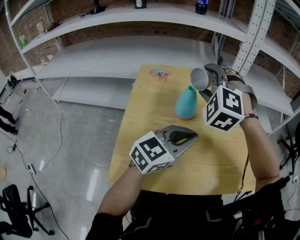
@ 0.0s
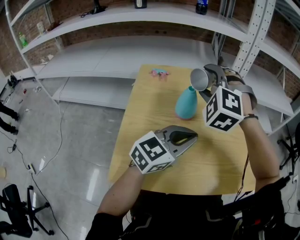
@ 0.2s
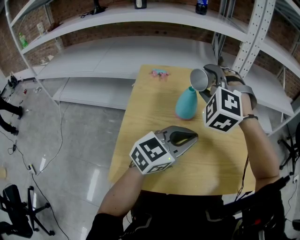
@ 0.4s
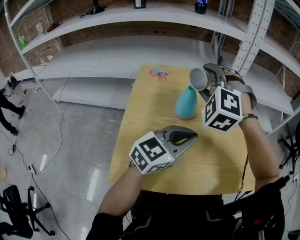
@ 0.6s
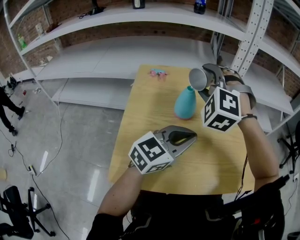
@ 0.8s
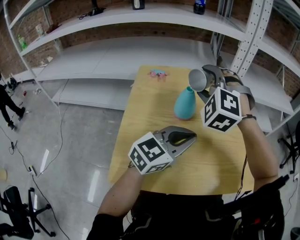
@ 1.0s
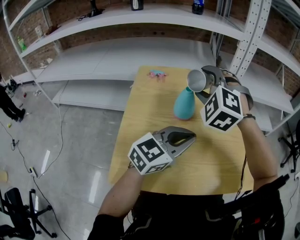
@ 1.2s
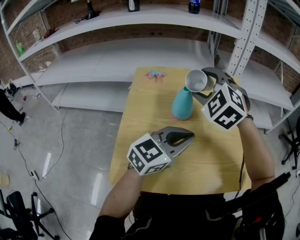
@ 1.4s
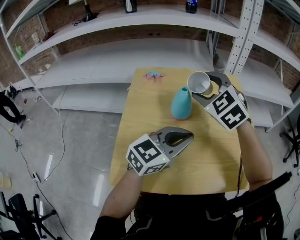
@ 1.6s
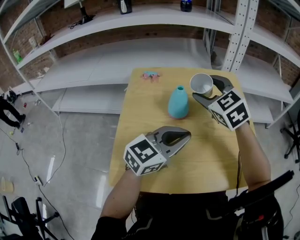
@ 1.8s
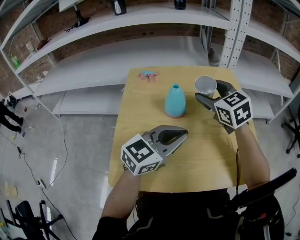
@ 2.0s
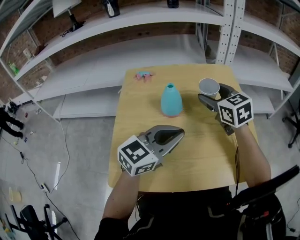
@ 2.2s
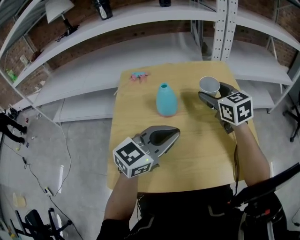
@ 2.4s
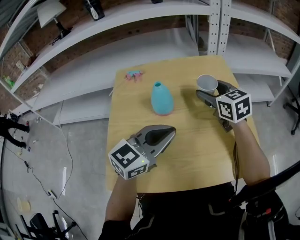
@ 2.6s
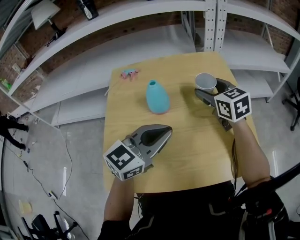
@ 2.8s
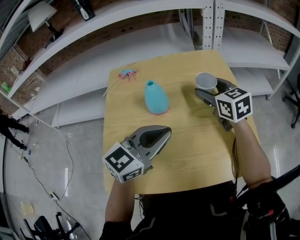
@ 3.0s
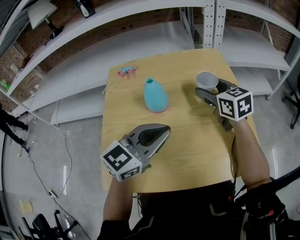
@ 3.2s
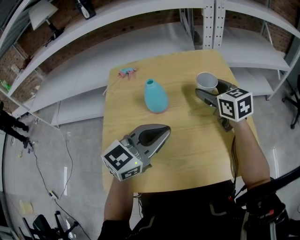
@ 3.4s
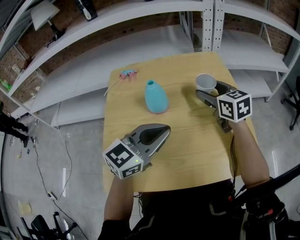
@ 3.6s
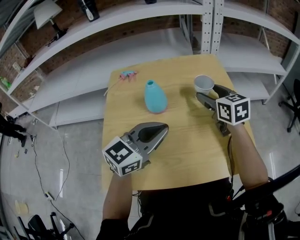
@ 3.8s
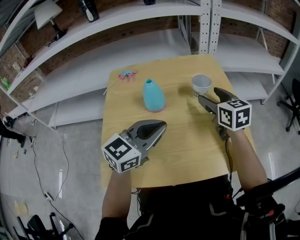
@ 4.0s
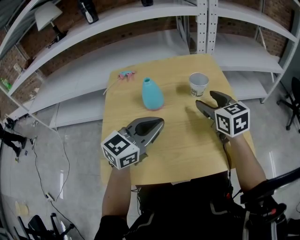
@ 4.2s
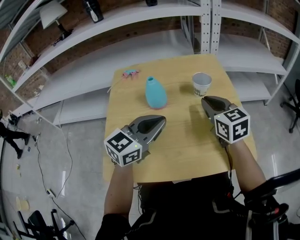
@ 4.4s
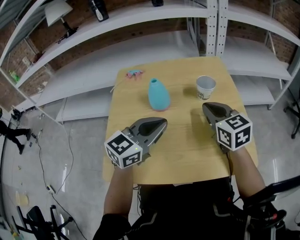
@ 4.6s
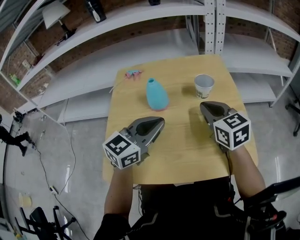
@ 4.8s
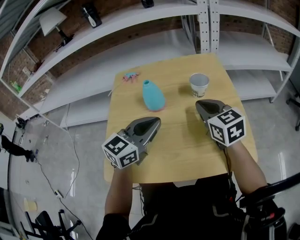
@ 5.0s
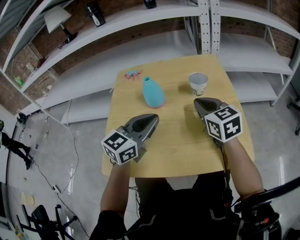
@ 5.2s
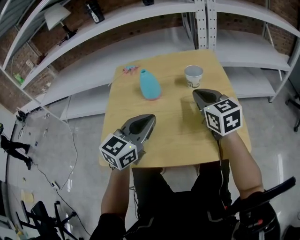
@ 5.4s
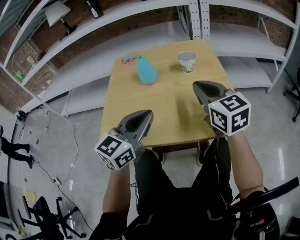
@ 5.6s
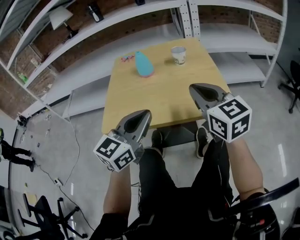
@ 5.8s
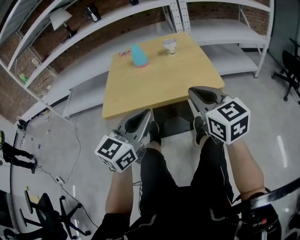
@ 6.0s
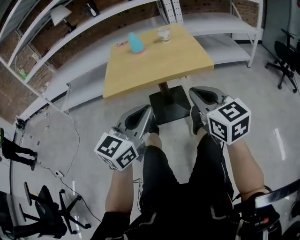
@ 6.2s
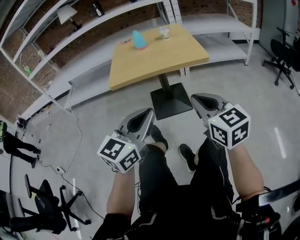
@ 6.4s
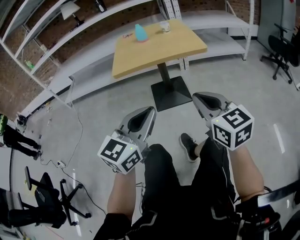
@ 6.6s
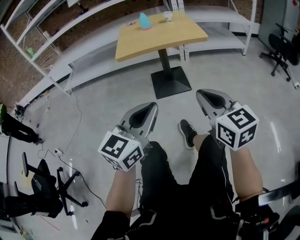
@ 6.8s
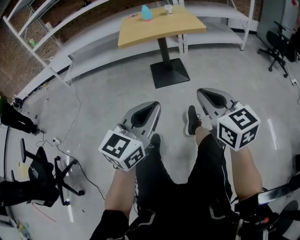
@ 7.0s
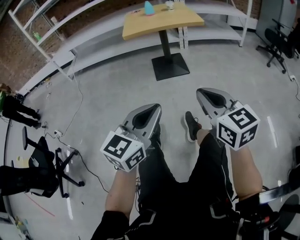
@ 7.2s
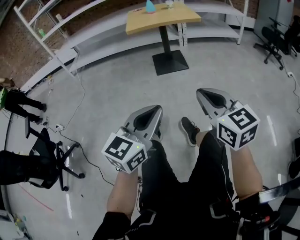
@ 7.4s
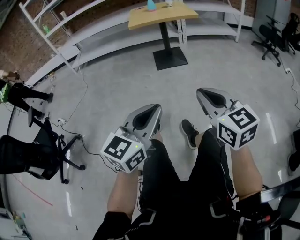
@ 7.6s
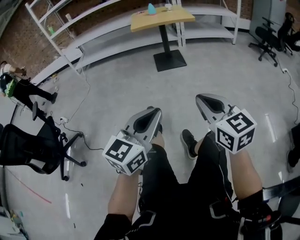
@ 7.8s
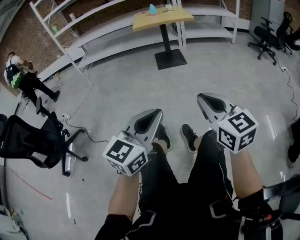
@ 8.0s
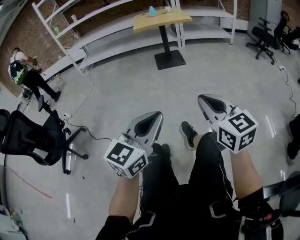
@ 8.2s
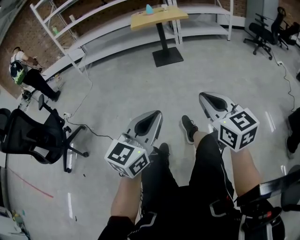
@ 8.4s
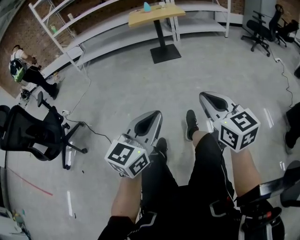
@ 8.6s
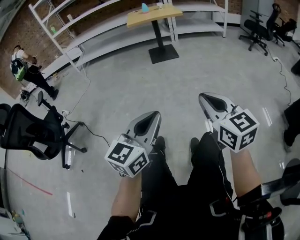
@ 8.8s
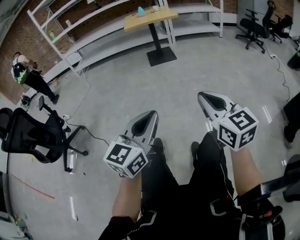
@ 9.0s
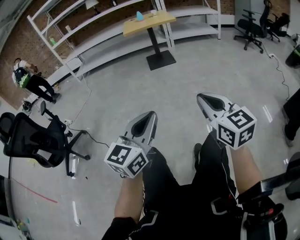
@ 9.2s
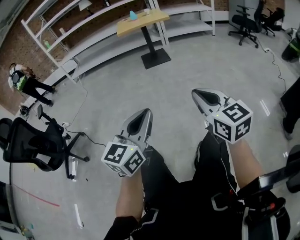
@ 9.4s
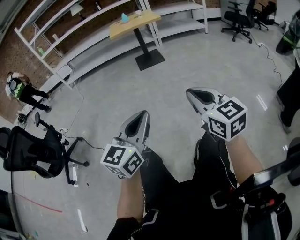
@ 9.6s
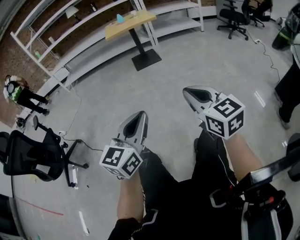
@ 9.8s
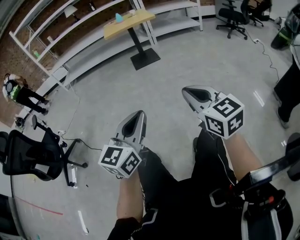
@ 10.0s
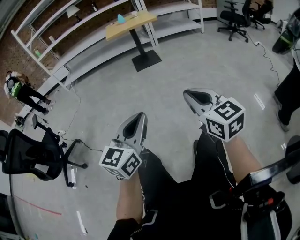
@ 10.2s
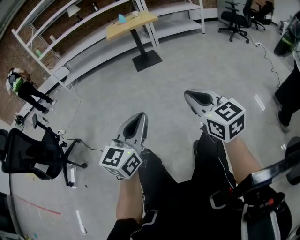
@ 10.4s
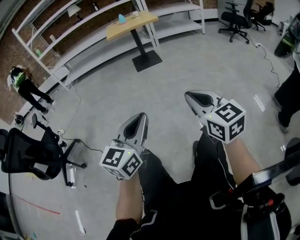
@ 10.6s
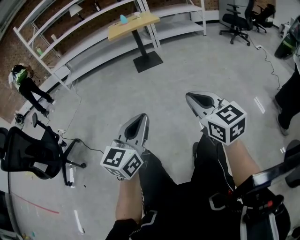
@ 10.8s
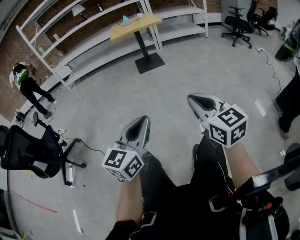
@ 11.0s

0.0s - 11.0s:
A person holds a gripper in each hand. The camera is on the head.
0.0s - 1.6s: The right gripper rotates about 30 degrees.
1.6s - 3.2s: The right gripper shifts some 15 cm to the right and downward, and rolls clockwise, seen from behind, by some 50 degrees.
3.2s - 4.8s: The right gripper is displaced backward by approximately 10 cm, and closes.
4.8s - 6.2s: The two grippers travel together, backward, about 40 cm.
6.2s - 7.8s: The pair of grippers is taken backward, some 80 cm.
7.8s - 9.4s: Both grippers move backward, some 20 cm.
9.4s - 11.0s: The grippers make only small movements.

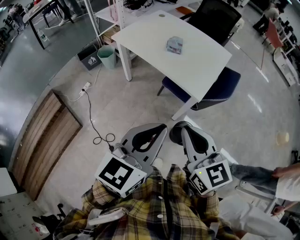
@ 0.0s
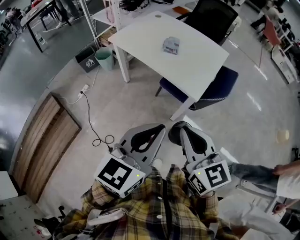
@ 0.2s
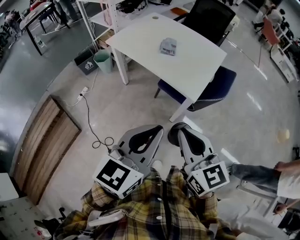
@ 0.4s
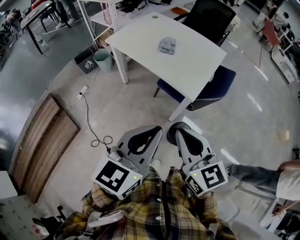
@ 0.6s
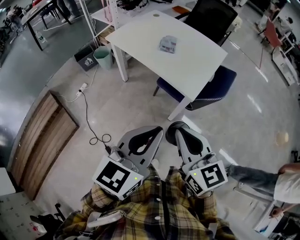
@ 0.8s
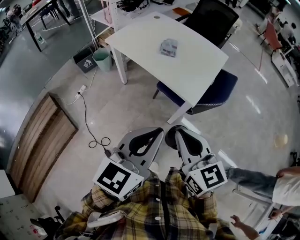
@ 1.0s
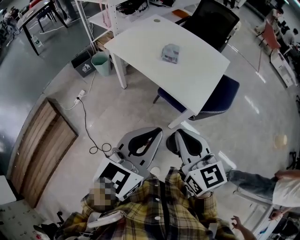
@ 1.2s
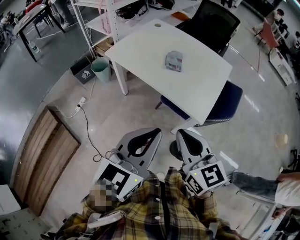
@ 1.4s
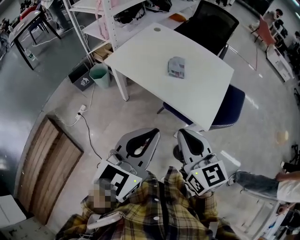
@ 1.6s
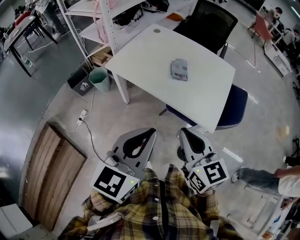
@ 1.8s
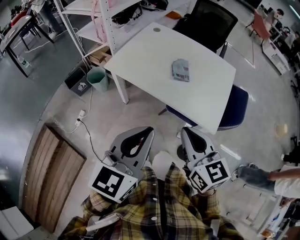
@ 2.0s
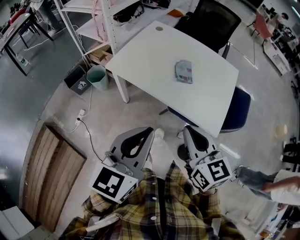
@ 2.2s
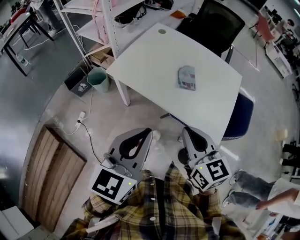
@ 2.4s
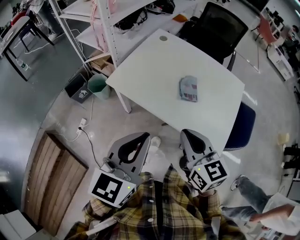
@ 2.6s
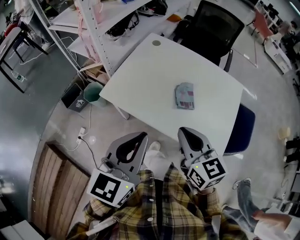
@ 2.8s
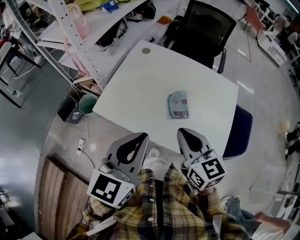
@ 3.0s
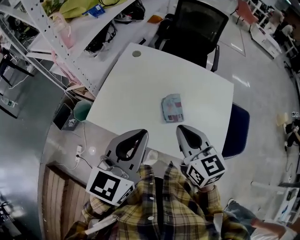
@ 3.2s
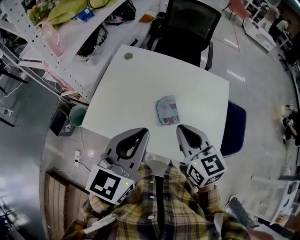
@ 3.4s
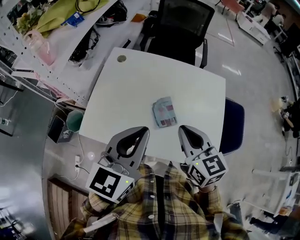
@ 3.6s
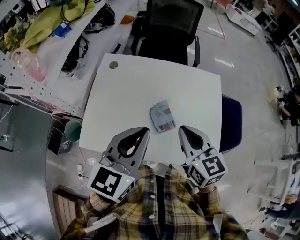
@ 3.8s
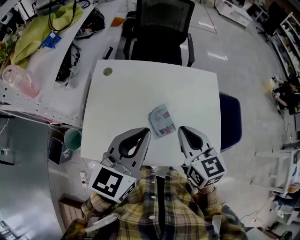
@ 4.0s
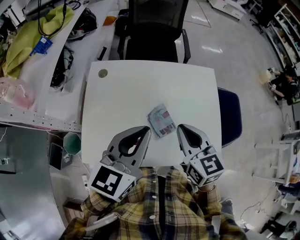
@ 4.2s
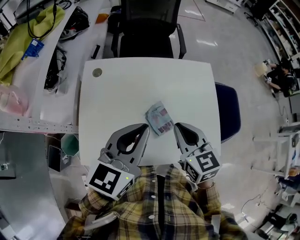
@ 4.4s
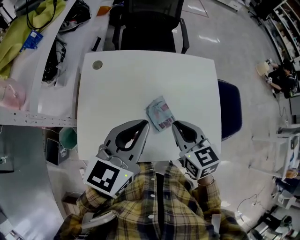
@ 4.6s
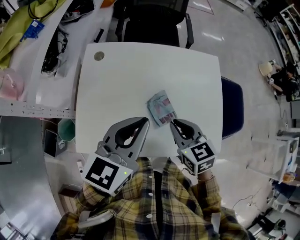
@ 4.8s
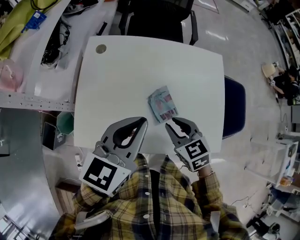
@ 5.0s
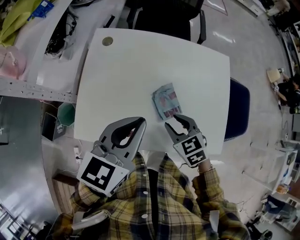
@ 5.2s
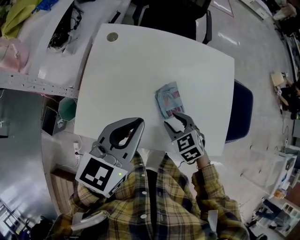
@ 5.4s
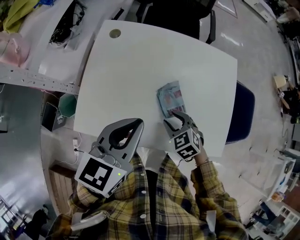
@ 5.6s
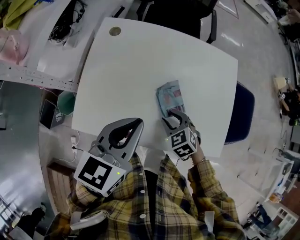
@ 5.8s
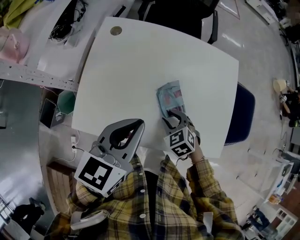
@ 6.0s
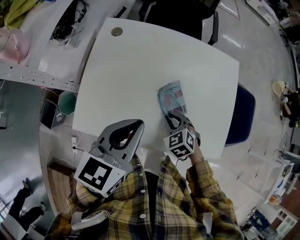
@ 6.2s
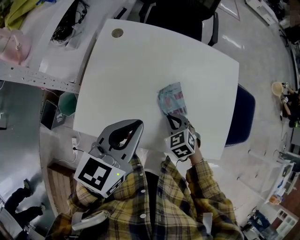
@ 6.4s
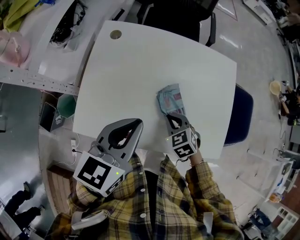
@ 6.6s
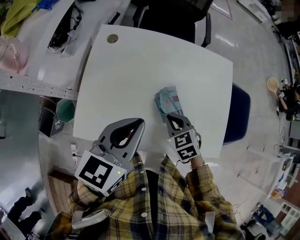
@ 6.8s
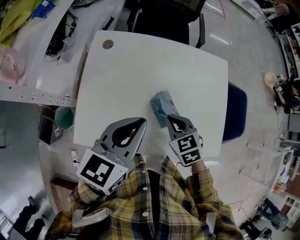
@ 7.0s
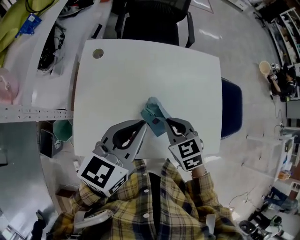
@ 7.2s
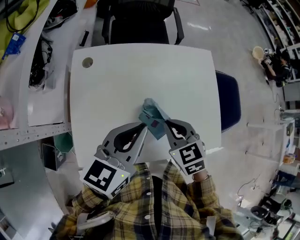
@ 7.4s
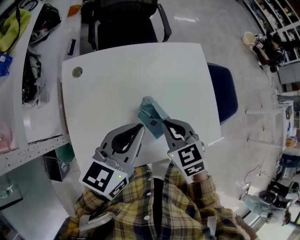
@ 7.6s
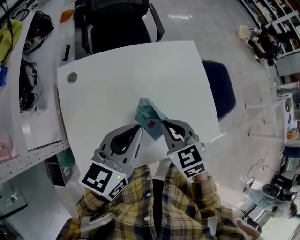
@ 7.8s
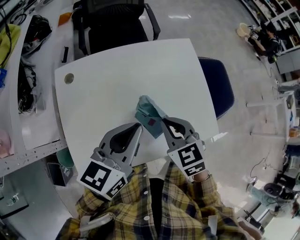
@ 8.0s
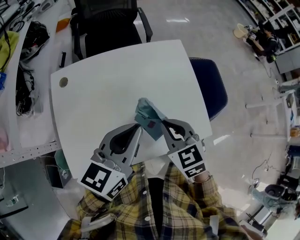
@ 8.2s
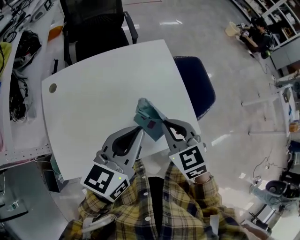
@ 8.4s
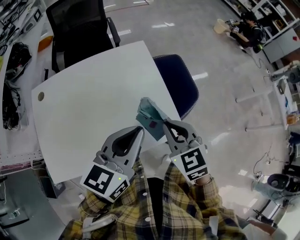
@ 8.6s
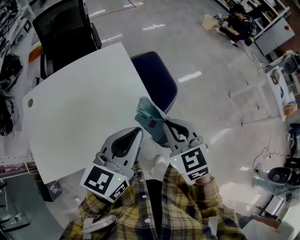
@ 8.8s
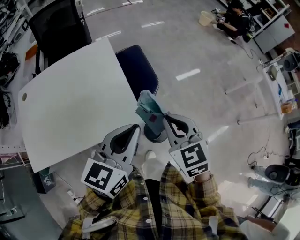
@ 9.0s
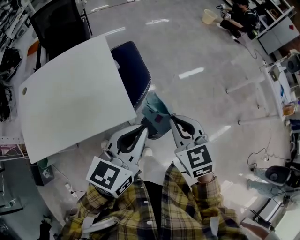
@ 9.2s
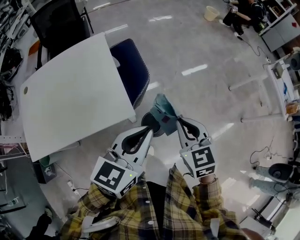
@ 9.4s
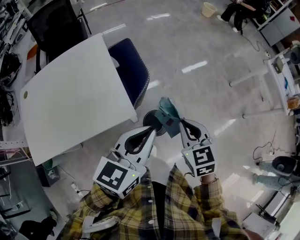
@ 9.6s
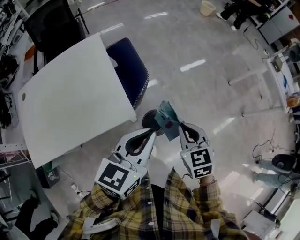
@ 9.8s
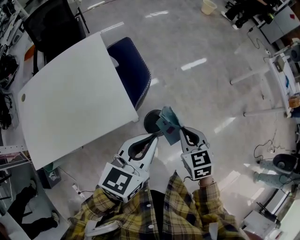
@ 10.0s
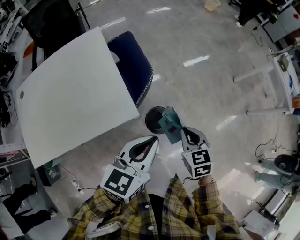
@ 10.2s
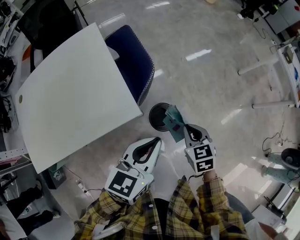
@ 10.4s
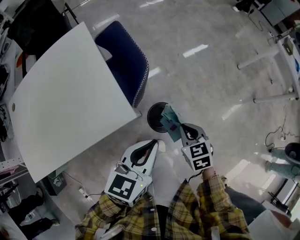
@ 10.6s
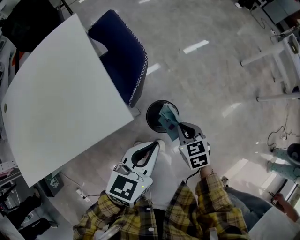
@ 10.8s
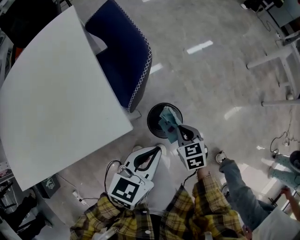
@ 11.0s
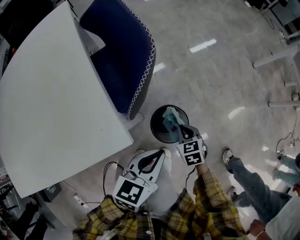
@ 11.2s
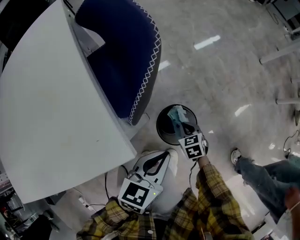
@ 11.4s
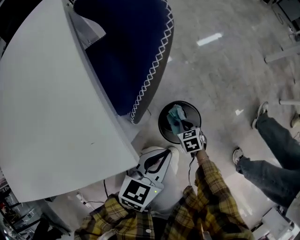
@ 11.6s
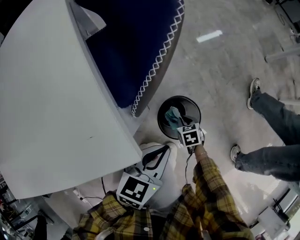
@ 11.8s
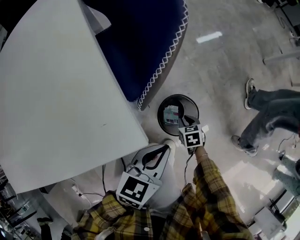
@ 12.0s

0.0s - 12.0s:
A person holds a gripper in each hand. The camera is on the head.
0.0s - 1.6s: Both grippers travel together forward and to the left, approximately 20 cm.
1.6s - 3.0s: Both grippers move forward, approximately 30 cm.
3.0s - 4.4s: The right gripper ends up approximately 15 cm from where it was, and turns by some 30 degrees, while the left gripper moves about 20 cm, and swivels roughly 30 degrees.
4.4s - 6.0s: The left gripper goes approximately 10 cm downward; the right gripper shifts roughly 20 cm downward, tips its fingers downward by approximately 30 degrees, and opens.
6.0s - 7.6s: The right gripper heads upward, covering about 15 cm, rotates some 30 degrees, and closes up. The left gripper heads forward, covering approximately 5 cm, and rotates approximately 20 degrees.
7.6s - 9.0s: The two grippers travel together, to the right, some 50 cm.
9.0s - 10.4s: The right gripper is displaced downward and to the right by approximately 25 cm, and turns by some 20 degrees, while the left gripper goes roughly 15 cm downward and to the right.
10.4s - 12.0s: The two grippers go some 40 cm downward. The right gripper rotates approximately 20 degrees.

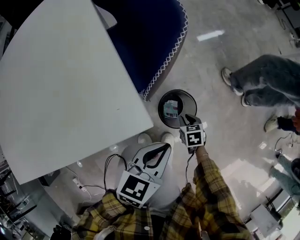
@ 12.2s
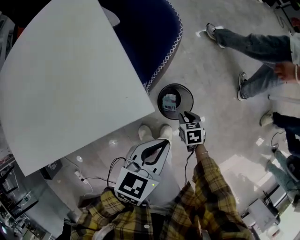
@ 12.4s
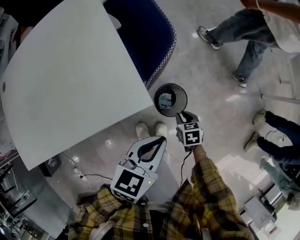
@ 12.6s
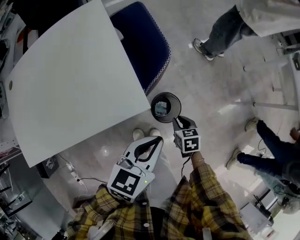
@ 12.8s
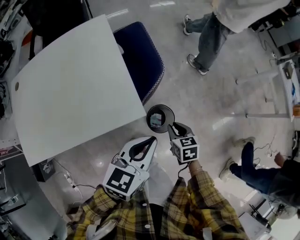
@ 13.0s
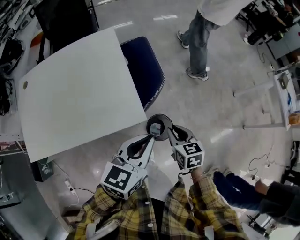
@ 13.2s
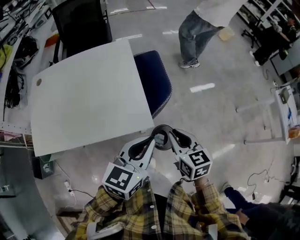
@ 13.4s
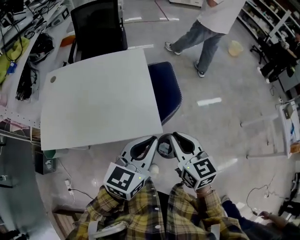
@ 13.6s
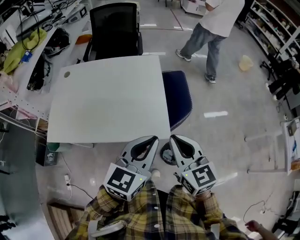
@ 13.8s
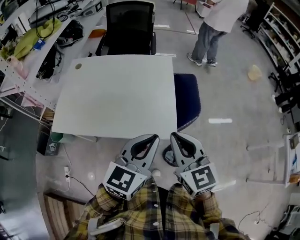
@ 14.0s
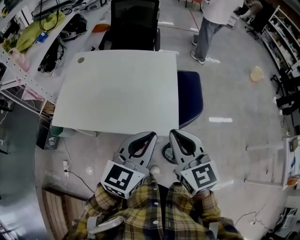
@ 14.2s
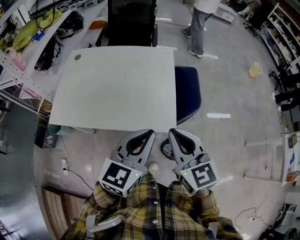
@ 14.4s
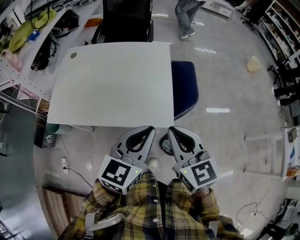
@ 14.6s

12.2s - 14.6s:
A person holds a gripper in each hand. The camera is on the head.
12.2s - 13.4s: The left gripper heads upward, covering roughly 35 cm, and changes its angle by approximately 20 degrees, while the right gripper goes approximately 50 cm upward, and angles its fingers upward, by some 40 degrees.
13.4s - 14.6s: The left gripper moves to the left and upward, about 10 cm; the right gripper goes about 20 cm upward and to the left, and turns by approximately 30 degrees.
